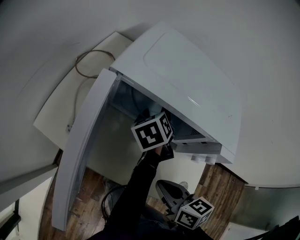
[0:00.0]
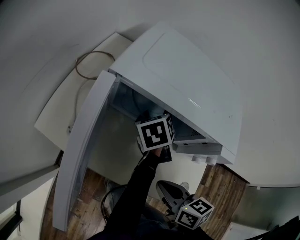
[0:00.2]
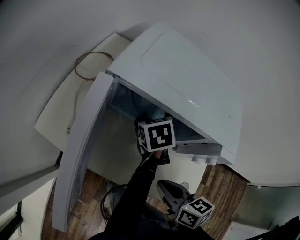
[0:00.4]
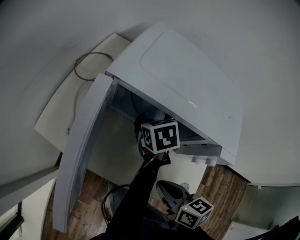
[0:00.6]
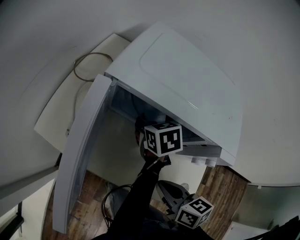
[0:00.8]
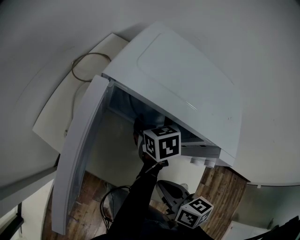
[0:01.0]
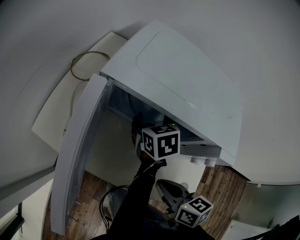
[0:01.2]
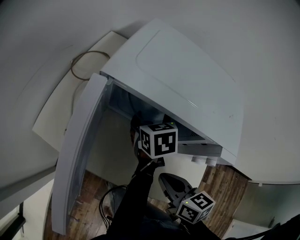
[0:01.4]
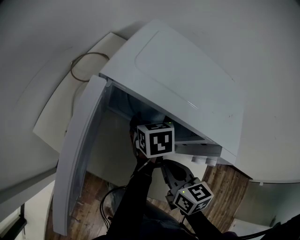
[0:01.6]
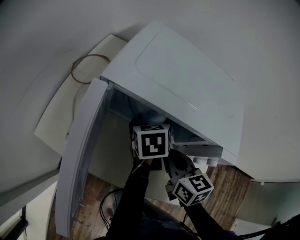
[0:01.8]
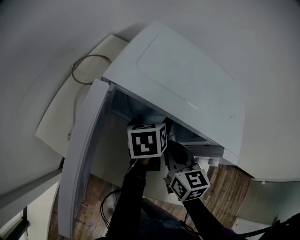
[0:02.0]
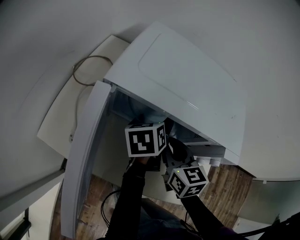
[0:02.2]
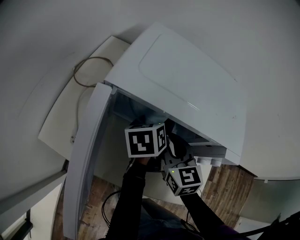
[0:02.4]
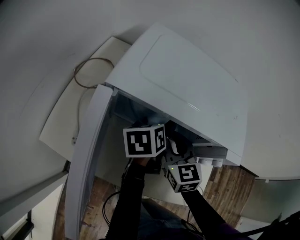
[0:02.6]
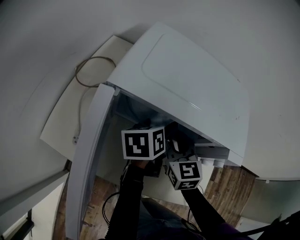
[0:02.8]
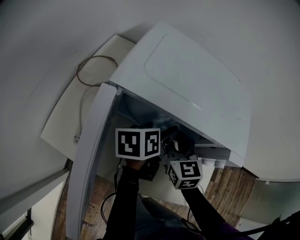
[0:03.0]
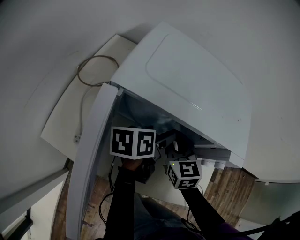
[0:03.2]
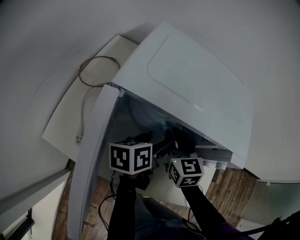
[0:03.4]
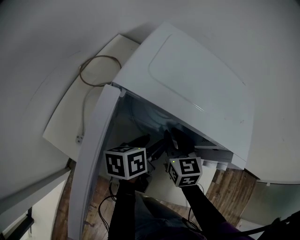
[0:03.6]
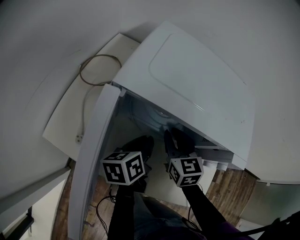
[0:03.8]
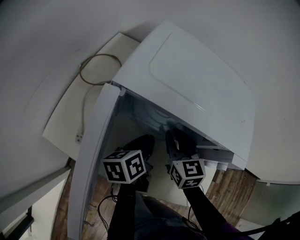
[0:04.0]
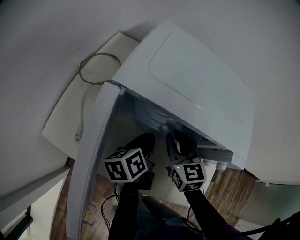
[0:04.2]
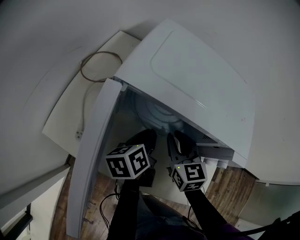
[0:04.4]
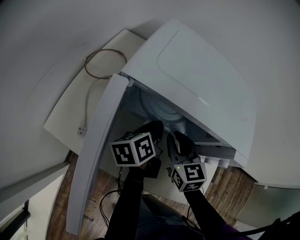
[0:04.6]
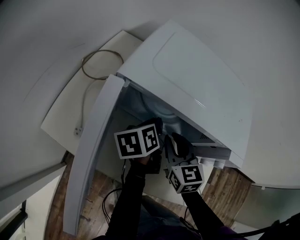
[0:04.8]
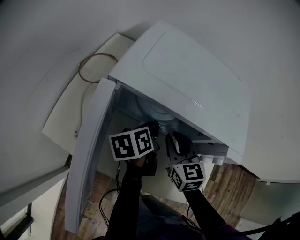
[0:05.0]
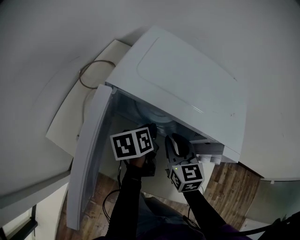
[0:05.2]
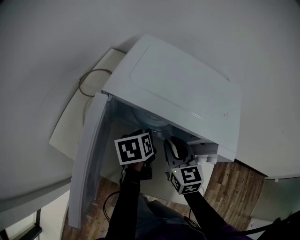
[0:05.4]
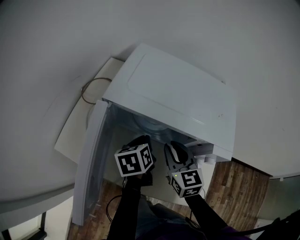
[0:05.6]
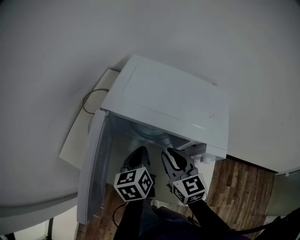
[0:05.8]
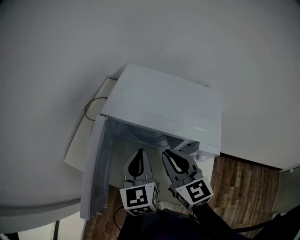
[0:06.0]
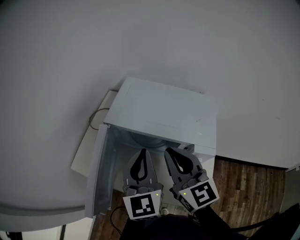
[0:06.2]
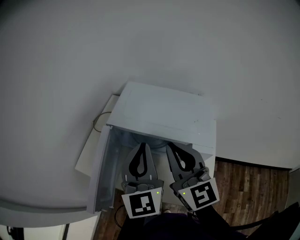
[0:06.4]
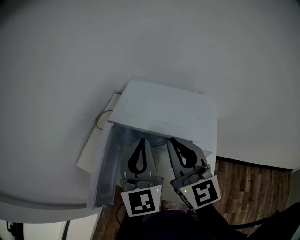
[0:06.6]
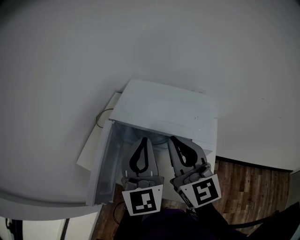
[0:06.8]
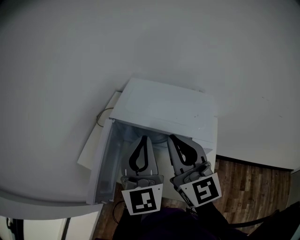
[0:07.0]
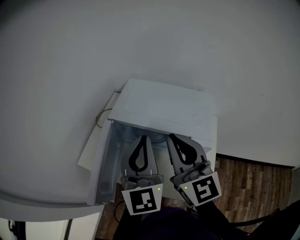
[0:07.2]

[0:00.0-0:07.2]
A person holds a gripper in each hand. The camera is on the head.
0.0 to 1.4 s: The left gripper swivels some 30 degrees.
1.4 to 2.8 s: The right gripper changes place by about 15 cm, and changes its angle by approximately 30 degrees; the left gripper changes its angle by some 30 degrees.
2.8 to 4.4 s: The left gripper is displaced backward by roughly 5 cm, and closes its fingers.
4.4 to 5.8 s: Both grippers move upward, some 10 cm. The left gripper changes its angle by approximately 20 degrees.
5.8 to 7.2 s: Both grippers travel together upward, about 25 cm. The left gripper angles its fingers upward, by roughly 30 degrees. Meanwhile the right gripper changes its angle by approximately 30 degrees.

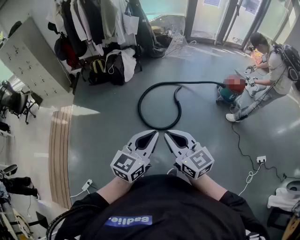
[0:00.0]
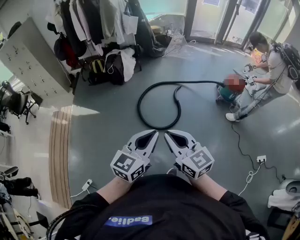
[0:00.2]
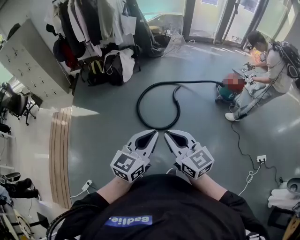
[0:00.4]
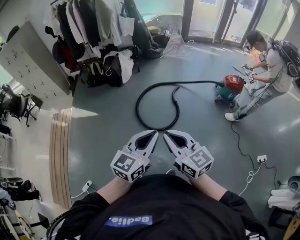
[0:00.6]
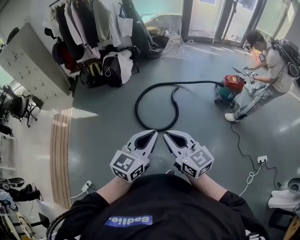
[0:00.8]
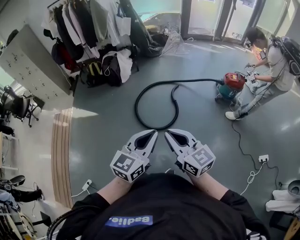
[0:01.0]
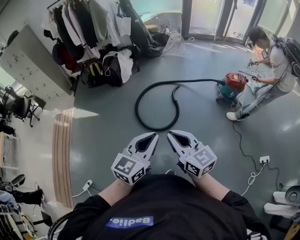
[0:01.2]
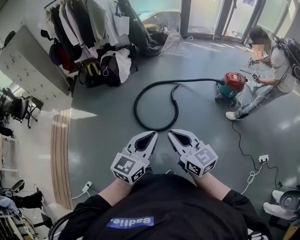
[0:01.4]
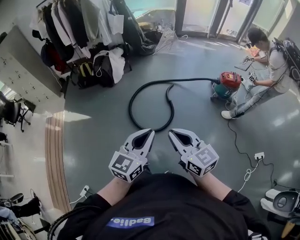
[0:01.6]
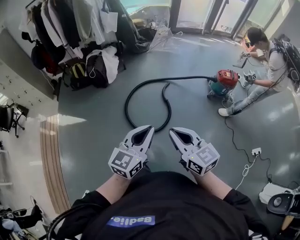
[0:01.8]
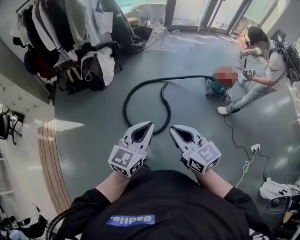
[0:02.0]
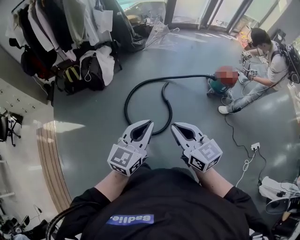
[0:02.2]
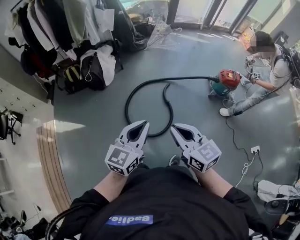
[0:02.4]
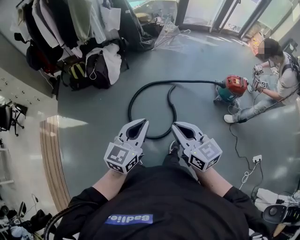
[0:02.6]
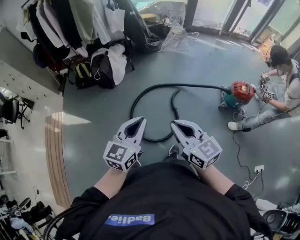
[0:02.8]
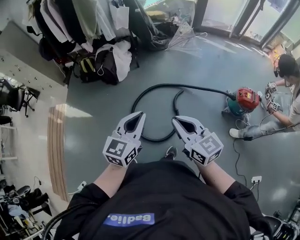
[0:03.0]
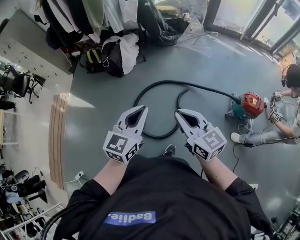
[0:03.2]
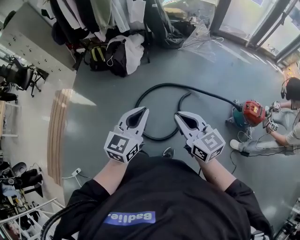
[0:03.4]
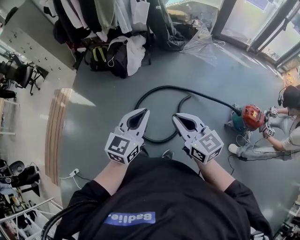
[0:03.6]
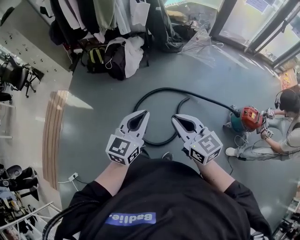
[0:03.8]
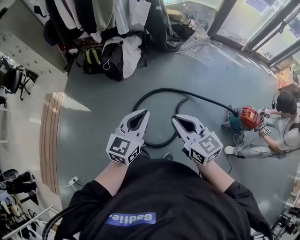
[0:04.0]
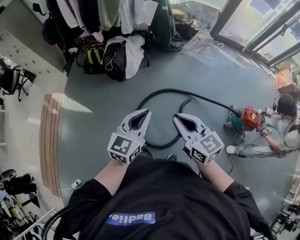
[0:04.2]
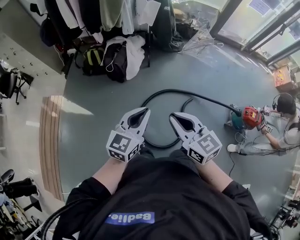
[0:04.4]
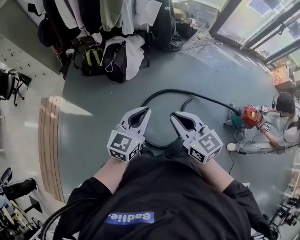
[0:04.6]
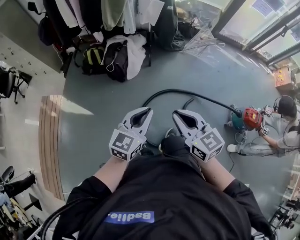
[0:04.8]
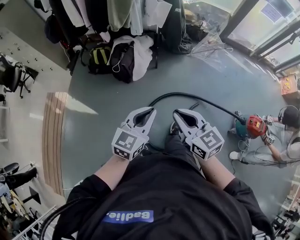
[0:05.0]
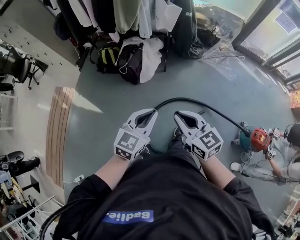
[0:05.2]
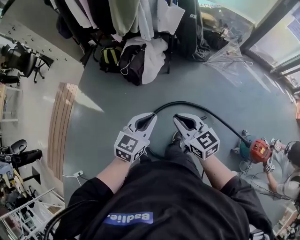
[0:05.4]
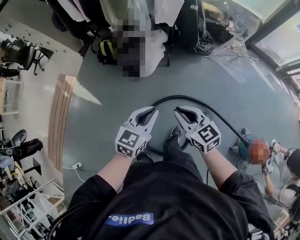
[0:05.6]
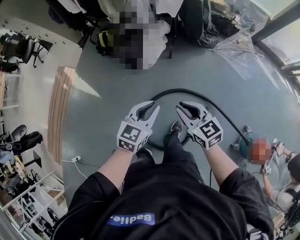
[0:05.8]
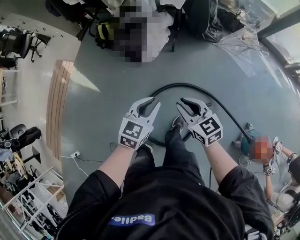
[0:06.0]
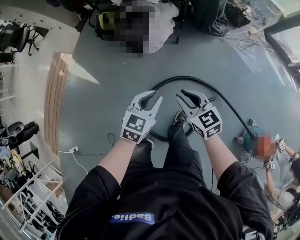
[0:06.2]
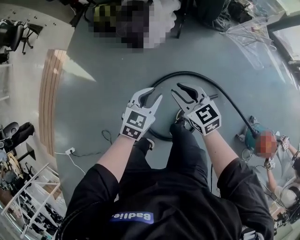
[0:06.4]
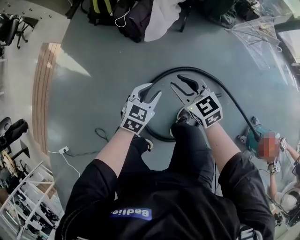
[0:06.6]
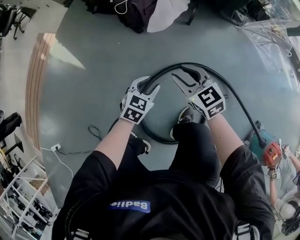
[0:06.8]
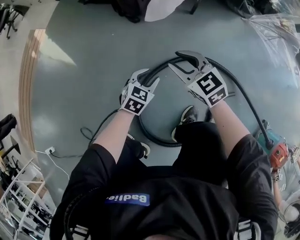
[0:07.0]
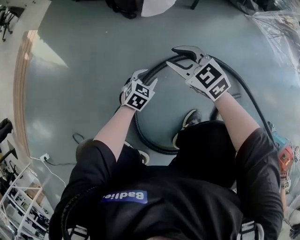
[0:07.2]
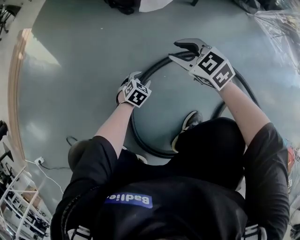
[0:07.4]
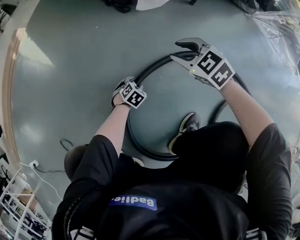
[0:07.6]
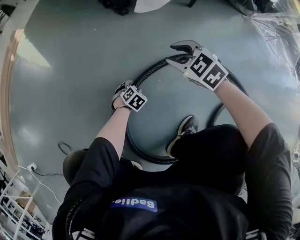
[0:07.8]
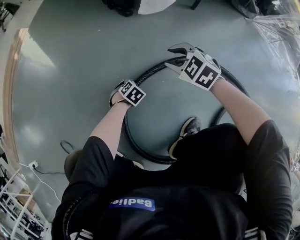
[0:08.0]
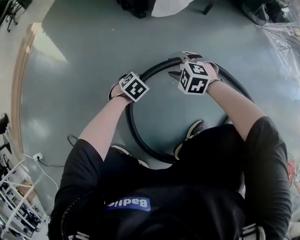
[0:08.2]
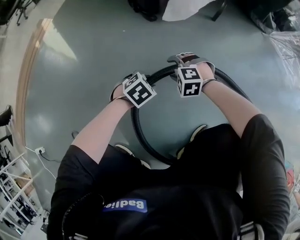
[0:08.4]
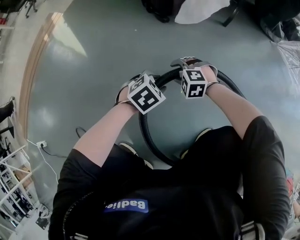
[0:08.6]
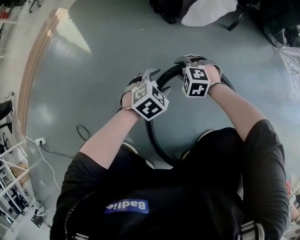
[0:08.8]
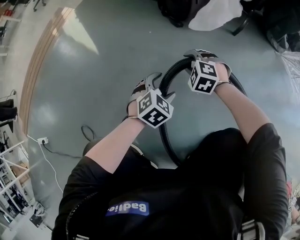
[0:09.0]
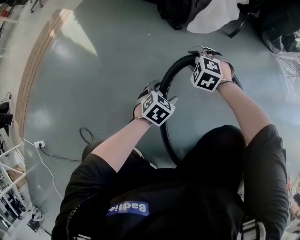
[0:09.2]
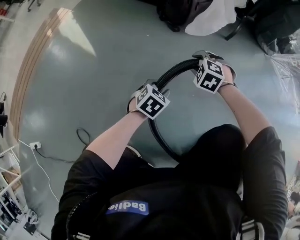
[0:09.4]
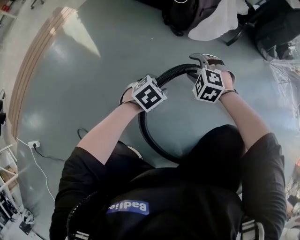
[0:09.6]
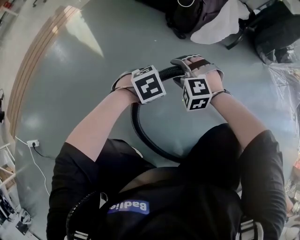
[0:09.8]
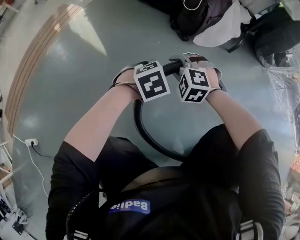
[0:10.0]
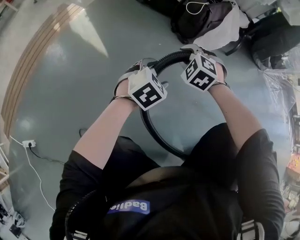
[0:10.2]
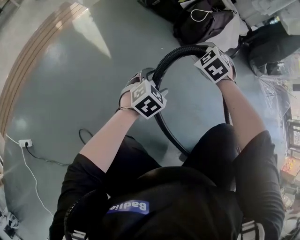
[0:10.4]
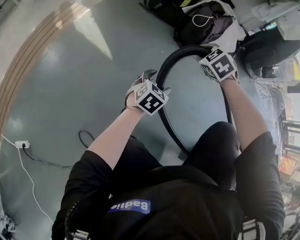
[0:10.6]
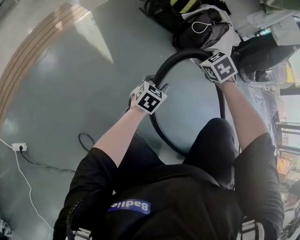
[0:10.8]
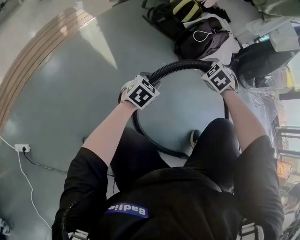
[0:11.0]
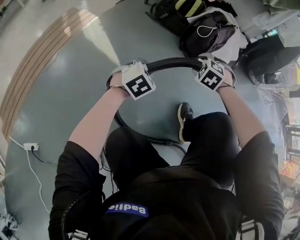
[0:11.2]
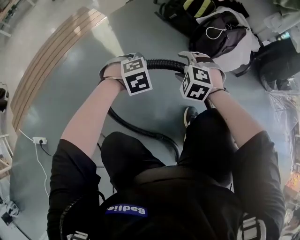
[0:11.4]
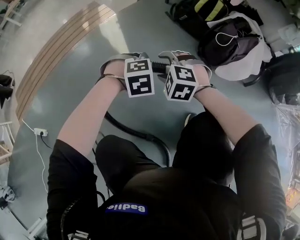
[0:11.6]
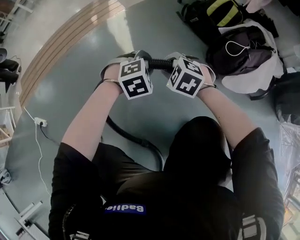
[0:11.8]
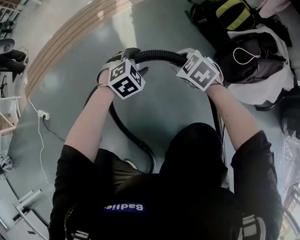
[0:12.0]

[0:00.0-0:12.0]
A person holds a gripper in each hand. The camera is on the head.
0.0 to 1.6 s: Both grippers move forward and to the right, approximately 15 cm.
1.6 to 3.0 s: Both grippers travel together forward, roughly 35 cm.
3.0 to 4.4 s: The right gripper shifts roughly 25 cm to the left and forward. The left gripper moves forward and to the left, some 25 cm.
4.4 to 6.0 s: Both grippers travel together forward, downward and to the right, roughly 35 cm. The left gripper changes its angle by roughly 20 degrees, while the right gripper changes its angle by about 20 degrees.
6.0 to 7.6 s: The grippers both shift downward by about 70 cm. The left gripper tips its fingers downward by about 40 degrees; the right gripper changes its angle by approximately 40 degrees.
7.6 to 9.0 s: The right gripper changes place by approximately 15 cm, and changes its angle by some 40 degrees. Meanwhile the left gripper moves upward, some 25 cm, and opens.
9.0 to 10.4 s: The left gripper is displaced to the left and upward by approximately 20 cm, and closes, then opens again, while the right gripper goes approximately 25 cm upward and to the left, rotates about 20 degrees, and opens, then closes again.
10.4 to 12.0 s: The right gripper ends up about 20 cm from where it was, turns by roughly 40 degrees, and opens, then closes once more; the left gripper changes place by approximately 30 cm, turns by some 30 degrees, and closes and opens again.

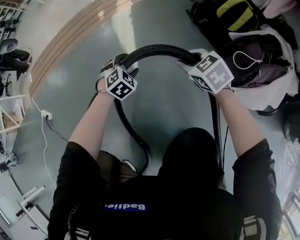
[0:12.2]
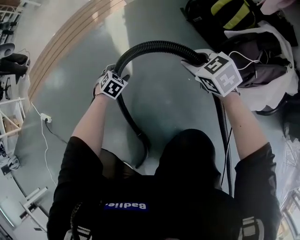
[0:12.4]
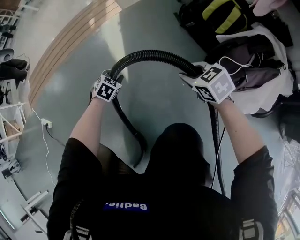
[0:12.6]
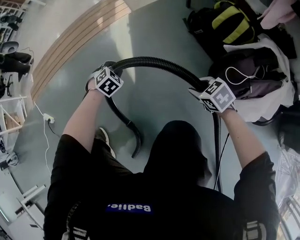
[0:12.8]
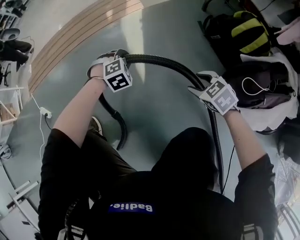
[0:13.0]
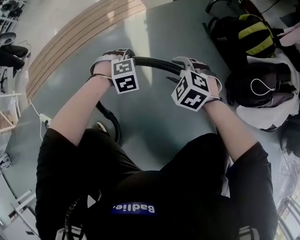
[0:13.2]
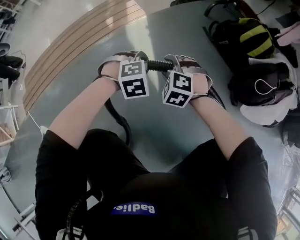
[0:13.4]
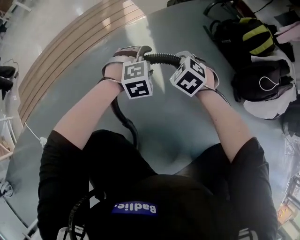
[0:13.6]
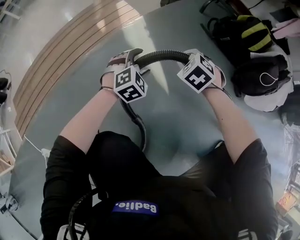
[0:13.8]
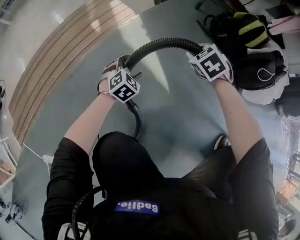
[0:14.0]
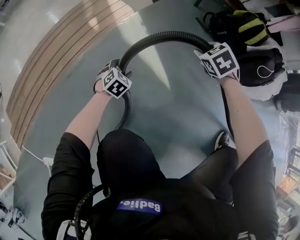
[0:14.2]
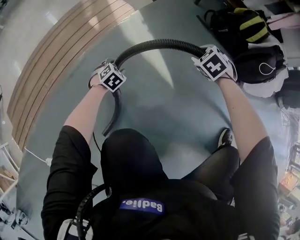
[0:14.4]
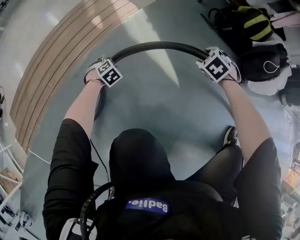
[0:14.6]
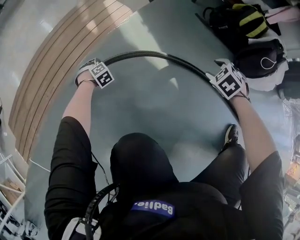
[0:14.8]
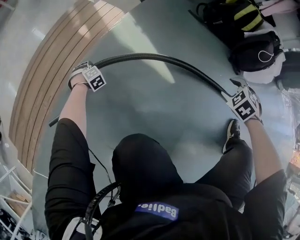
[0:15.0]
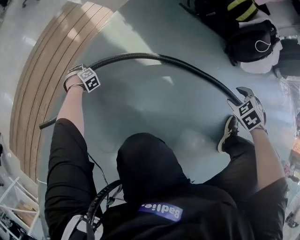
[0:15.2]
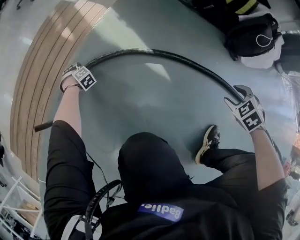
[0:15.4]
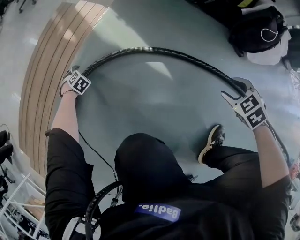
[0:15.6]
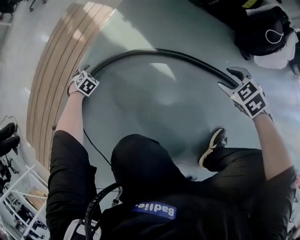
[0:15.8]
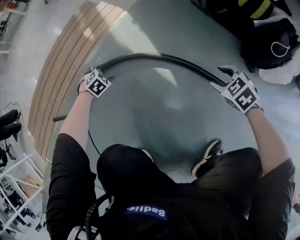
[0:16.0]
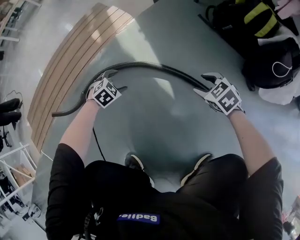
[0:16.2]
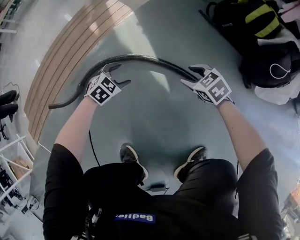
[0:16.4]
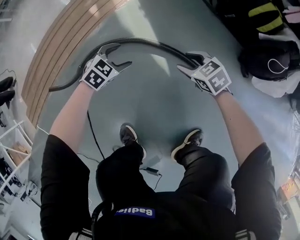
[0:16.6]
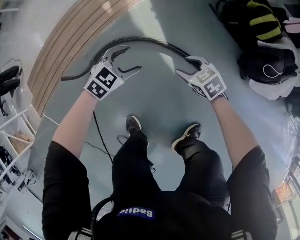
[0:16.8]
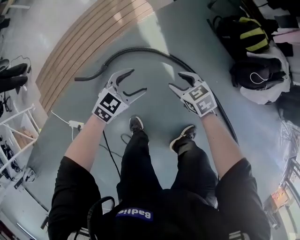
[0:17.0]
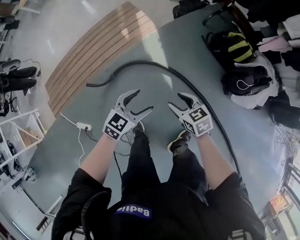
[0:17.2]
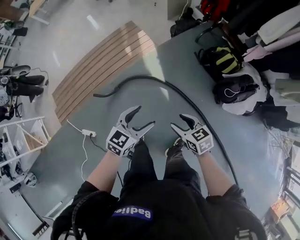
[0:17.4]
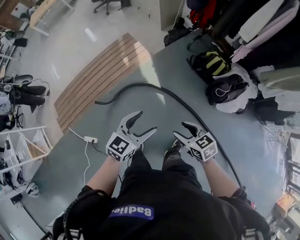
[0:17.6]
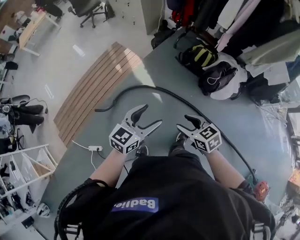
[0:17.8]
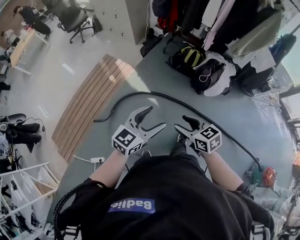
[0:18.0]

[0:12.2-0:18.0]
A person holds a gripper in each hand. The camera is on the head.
12.2 to 13.6 s: The left gripper moves some 5 cm downward and comes back, turns by some 30 degrees, and closes, then opens again. Meanwhile the right gripper shifts by approximately 30 cm, turns by some 30 degrees, and opens and closes again.
13.6 to 15.0 s: The right gripper shifts approximately 20 cm to the right and backward, changes its angle by roughly 40 degrees, and opens its fingers. The left gripper travels to the left and downward by about 50 cm, rotates some 20 degrees, and closes its fingers.
15.0 to 16.6 s: The left gripper moves some 35 cm, swivels some 40 degrees, and opens its fingers. Meanwhile the right gripper goes downward and returns, some 10 cm each way, and swivels about 40 degrees.
16.6 to 18.0 s: The two grippers go some 80 cm upward and backward. The left gripper angles its fingers upward, by approximately 40 degrees. The right gripper changes its angle by approximately 30 degrees.
